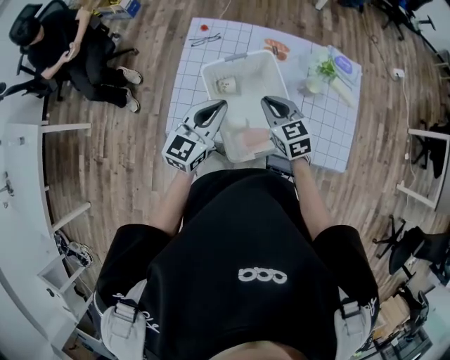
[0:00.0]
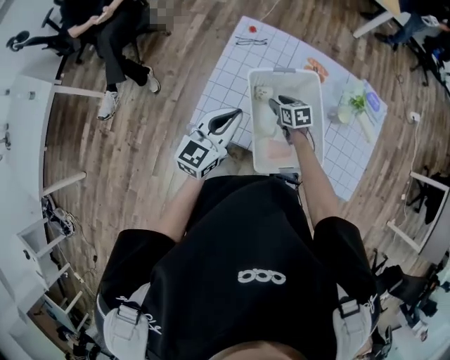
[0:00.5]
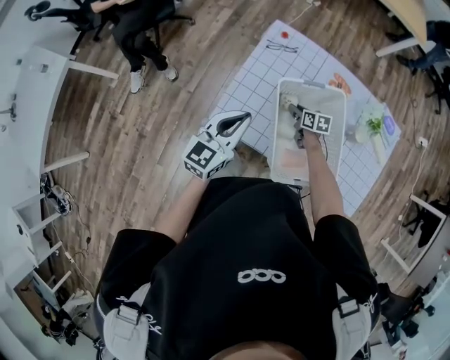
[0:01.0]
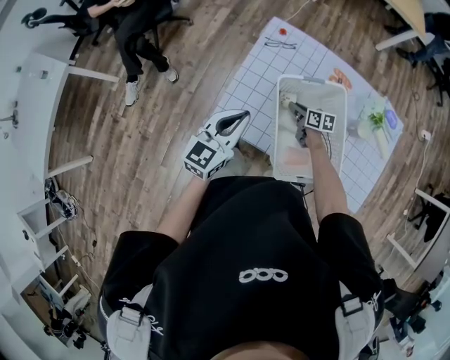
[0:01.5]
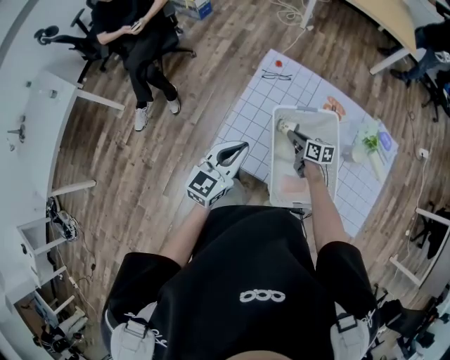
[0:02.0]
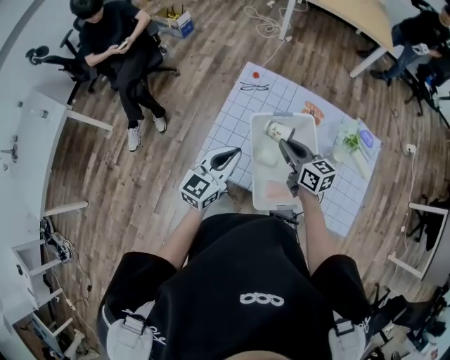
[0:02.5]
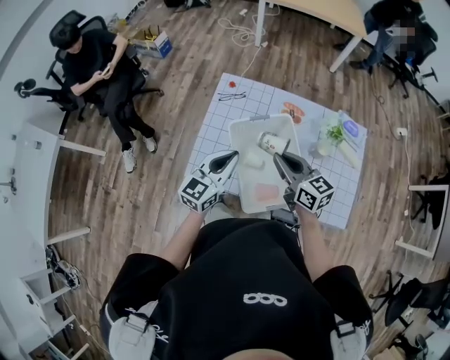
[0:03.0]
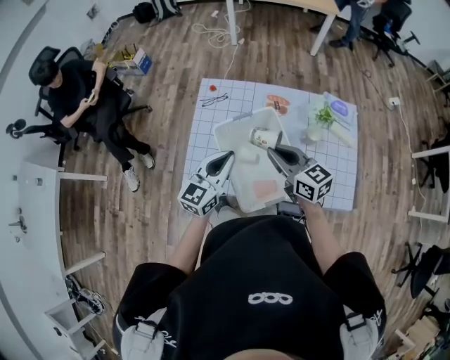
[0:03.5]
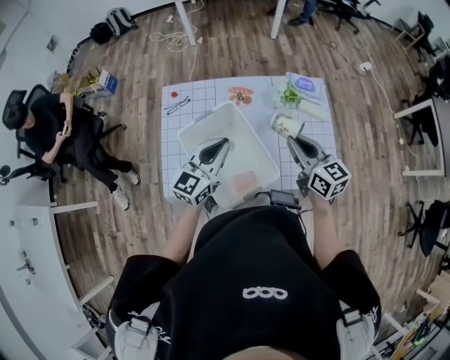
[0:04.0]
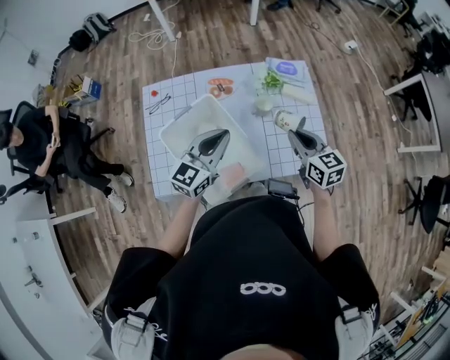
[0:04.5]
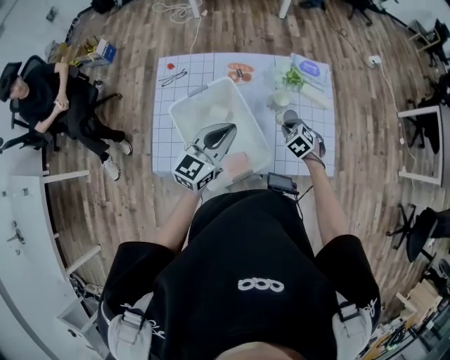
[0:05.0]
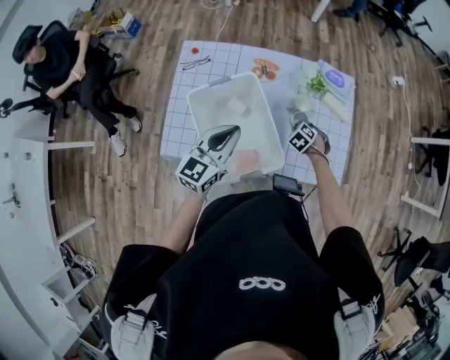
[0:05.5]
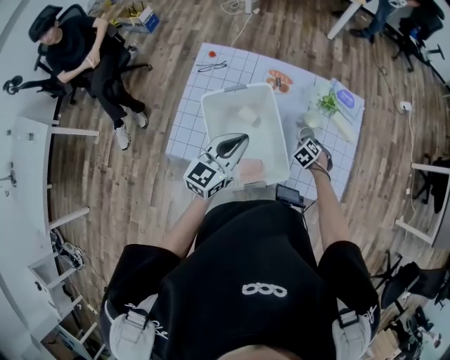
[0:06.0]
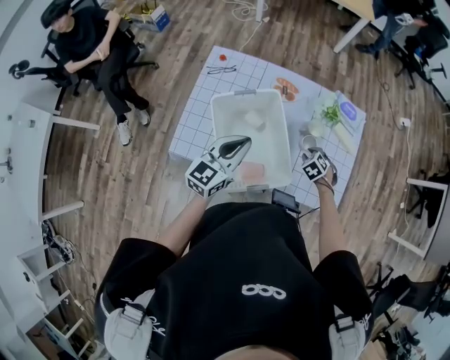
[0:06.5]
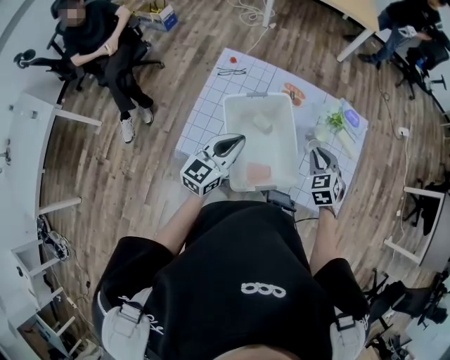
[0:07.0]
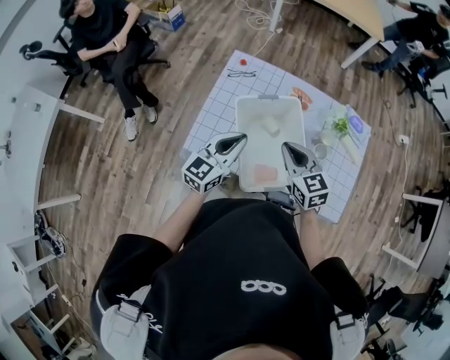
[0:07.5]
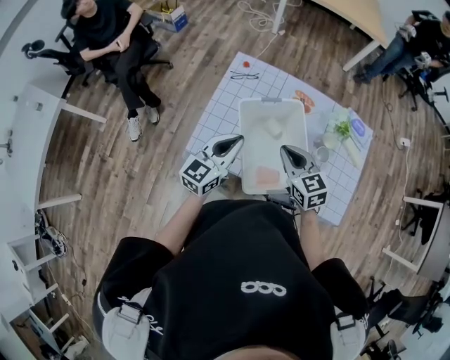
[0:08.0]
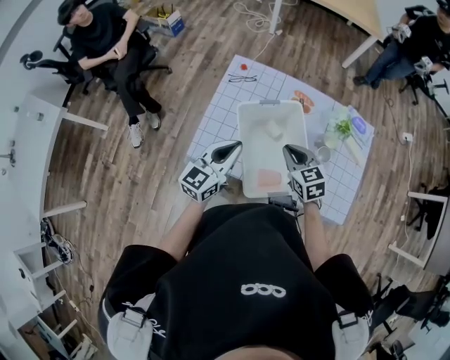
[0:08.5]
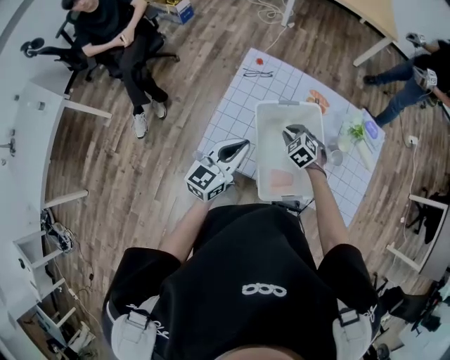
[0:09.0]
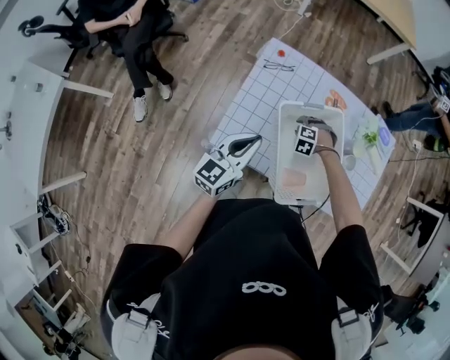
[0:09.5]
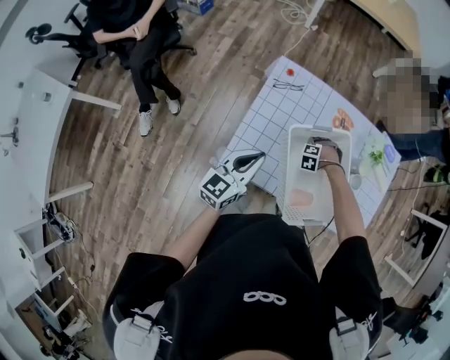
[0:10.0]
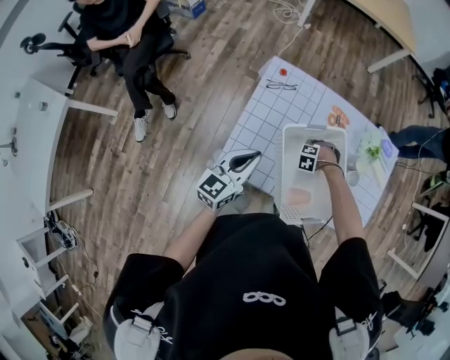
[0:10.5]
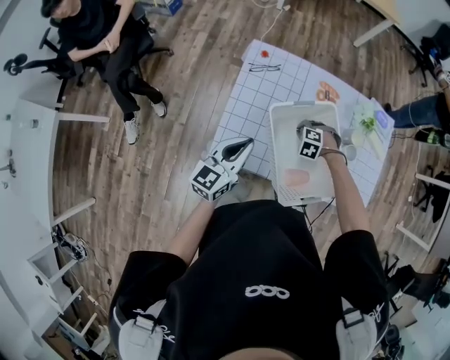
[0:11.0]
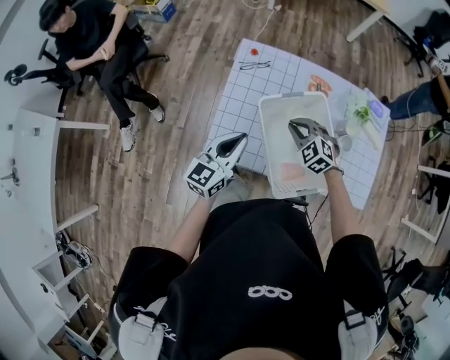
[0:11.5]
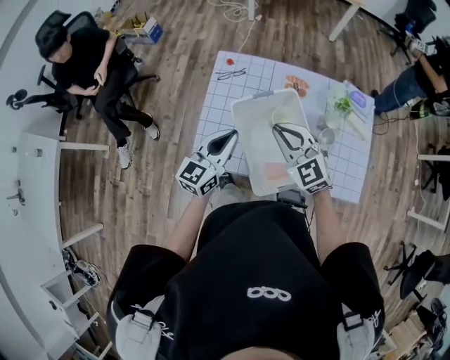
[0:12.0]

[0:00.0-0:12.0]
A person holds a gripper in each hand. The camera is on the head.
0:00.0 to 0:02.0: The right gripper moves downward, forward and to the left, approximately 20 cm, swivels approximately 40 degrees, and opens, then closes again. The left gripper is displaced to the left by some 15 cm.
0:02.0 to 0:04.0: The left gripper shifts by some 25 cm, and changes its angle by roughly 30 degrees, while the right gripper moves about 40 cm, and turns by approximately 40 degrees.
0:04.0 to 0:06.0: The left gripper moves approximately 5 cm. Meanwhile the right gripper goes roughly 35 cm downward, and tilts its fingers about 60 degrees downward.
0:06.0 to 0:08.0: The left gripper shifts by about 15 cm. The right gripper is displaced upward by about 30 cm, and angles its fingers upward, by approximately 50 degrees.
0:08.0 to 0:10.0: The right gripper heads downward, covering approximately 30 cm, tilts its fingers about 50 degrees downward, and opens its fingers. Meanwhile the left gripper shifts by approximately 10 cm.
0:10.0 to 0:12.0: The left gripper ends up approximately 10 cm from where it was; the right gripper is displaced upward by about 35 cm, points its fingers approximately 60 degrees further upward, and closes.

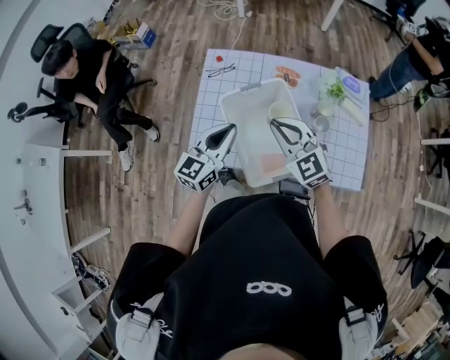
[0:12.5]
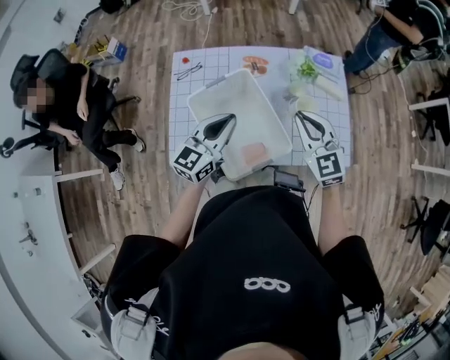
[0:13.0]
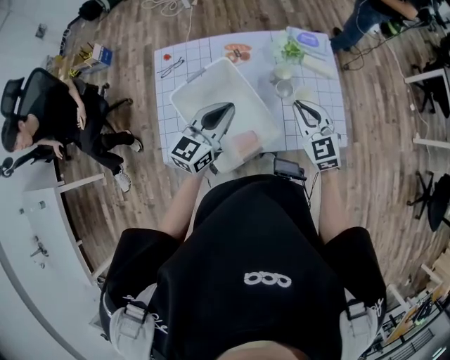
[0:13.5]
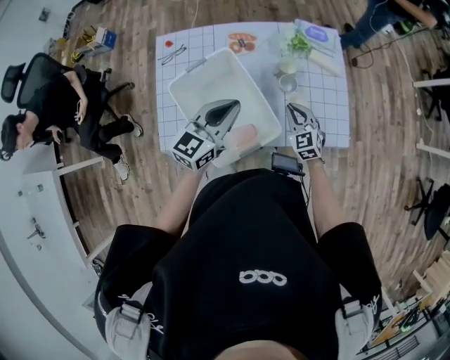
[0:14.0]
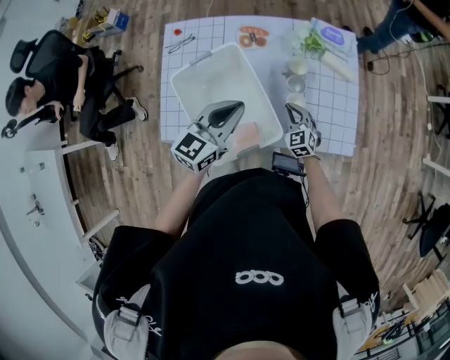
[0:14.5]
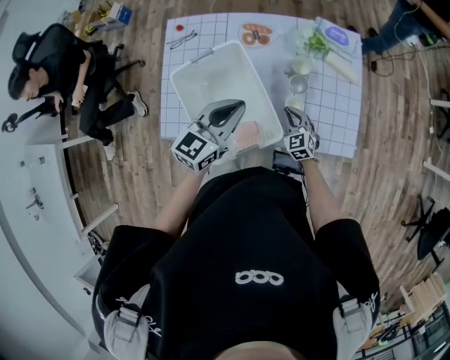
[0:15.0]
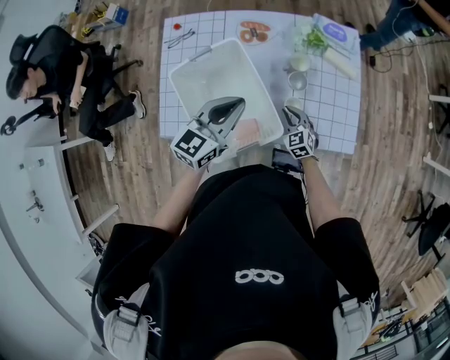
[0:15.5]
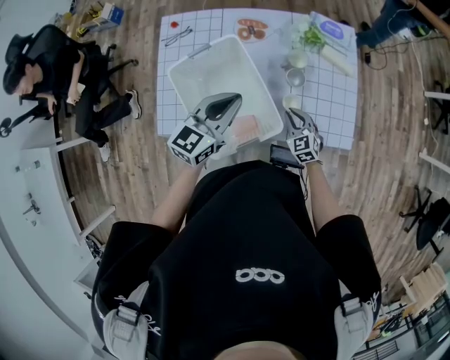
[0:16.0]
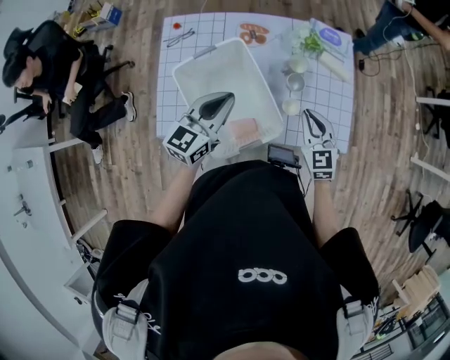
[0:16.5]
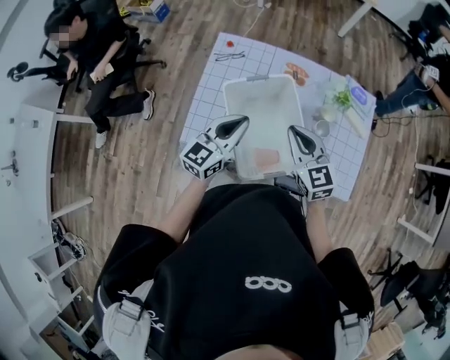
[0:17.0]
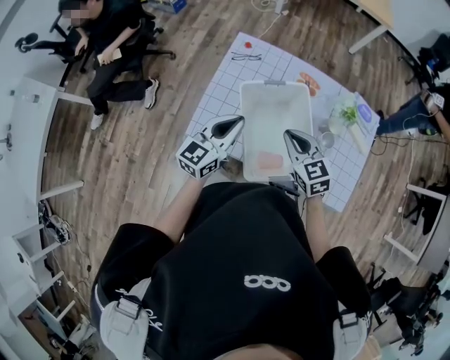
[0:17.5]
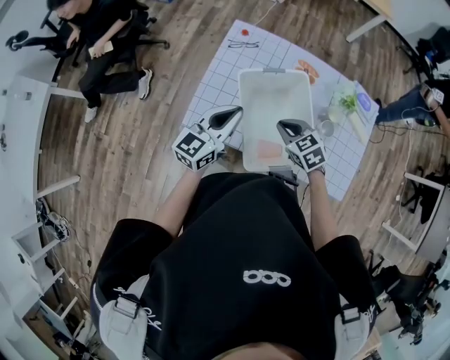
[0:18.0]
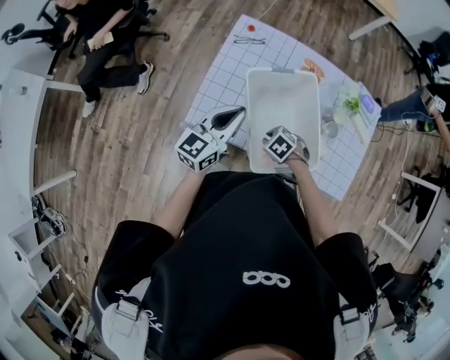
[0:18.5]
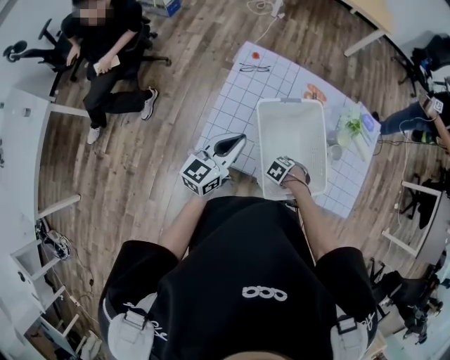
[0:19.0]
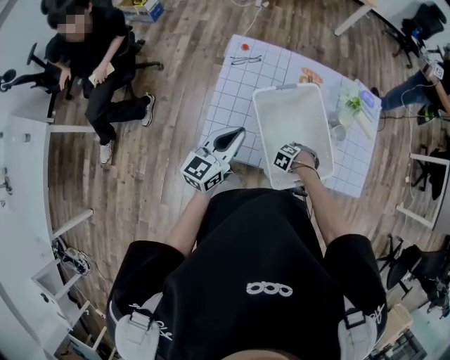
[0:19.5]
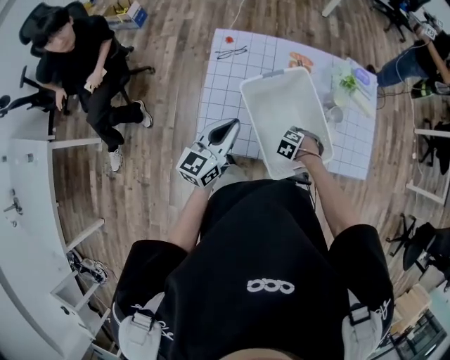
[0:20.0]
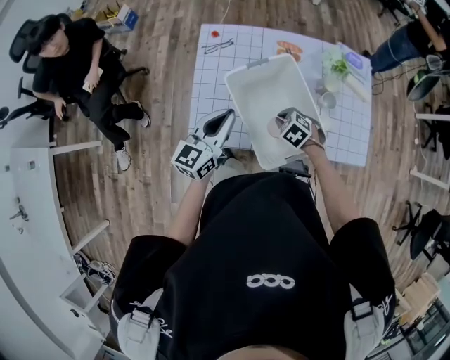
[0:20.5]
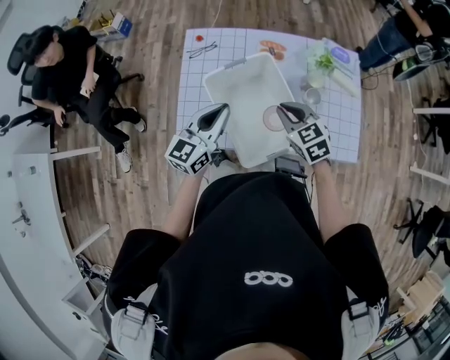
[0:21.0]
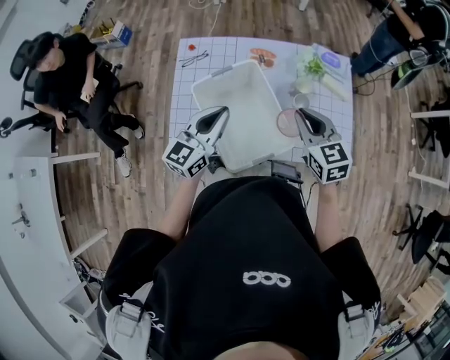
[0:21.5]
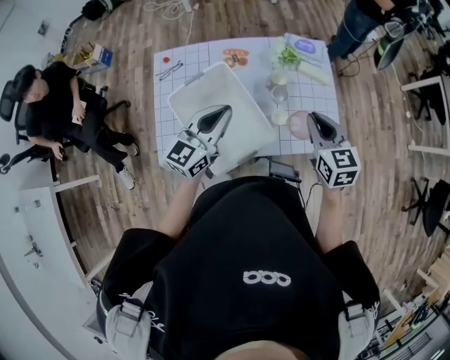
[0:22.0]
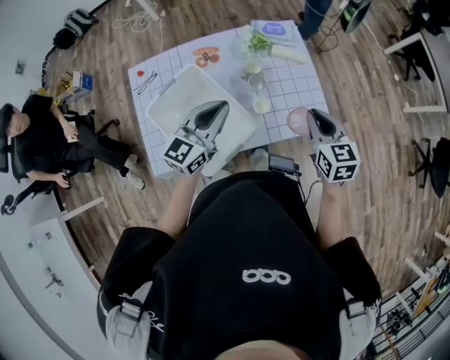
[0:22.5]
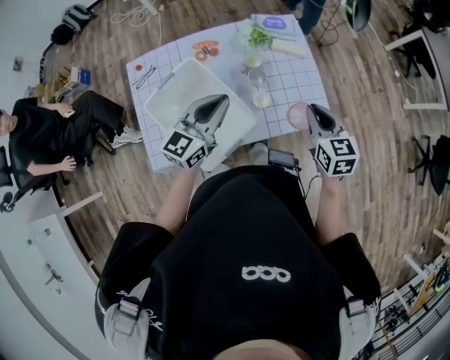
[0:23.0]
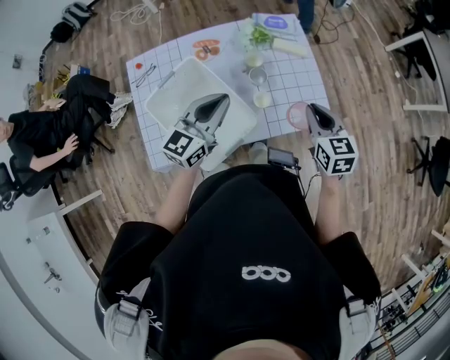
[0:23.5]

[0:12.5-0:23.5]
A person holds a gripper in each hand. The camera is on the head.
0:12.5 to 0:14.5: The right gripper goes approximately 35 cm downward and to the right, and rotates roughly 30 degrees, while the left gripper moves to the right, about 15 cm.
0:14.5 to 0:16.0: The grippers move only a little.
0:16.0 to 0:18.0: The left gripper changes place by roughly 20 cm, and turns by roughly 20 degrees, while the right gripper shifts by some 25 cm, and changes its angle by some 30 degrees.
0:18.0 to 0:20.0: The left gripper ends up approximately 5 cm from where it was; the right gripper travels downward by about 20 cm, tips its fingers downward by approximately 40 degrees, and opens, then closes once more.
0:20.0 to 0:21.5: The right gripper is displaced upward by about 30 cm, and tips its fingers upward by some 60 degrees. The left gripper moves about 15 cm.
0:21.5 to 0:23.5: Both grippers move to the right, approximately 15 cm. The left gripper rotates approximately 20 degrees; the right gripper changes its angle by approximately 30 degrees.

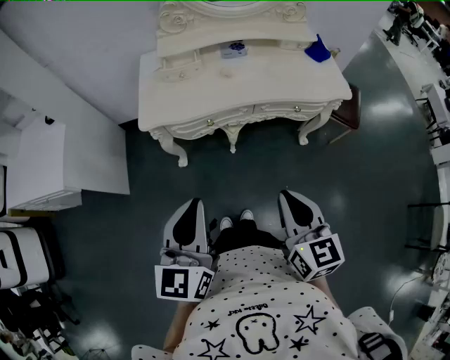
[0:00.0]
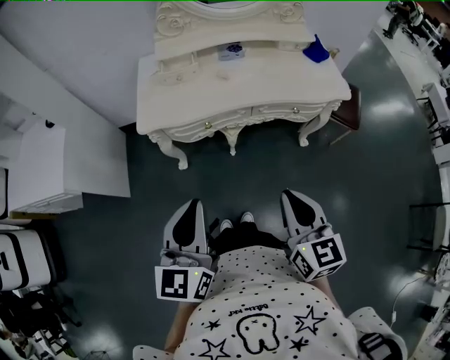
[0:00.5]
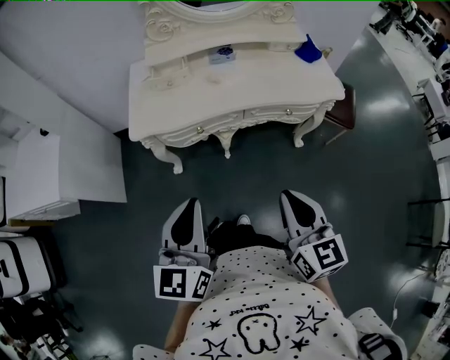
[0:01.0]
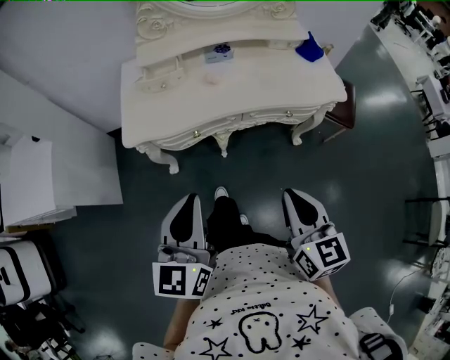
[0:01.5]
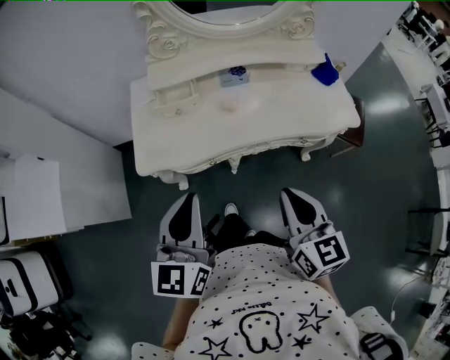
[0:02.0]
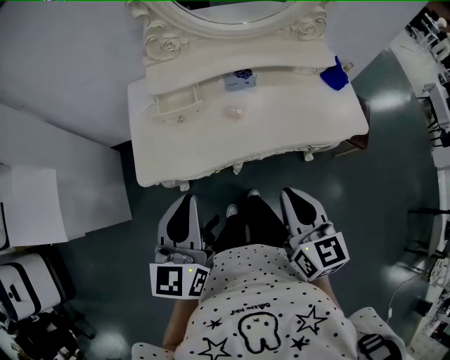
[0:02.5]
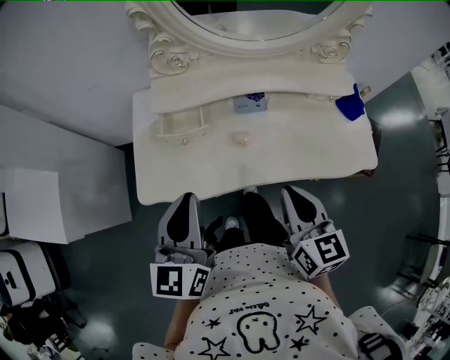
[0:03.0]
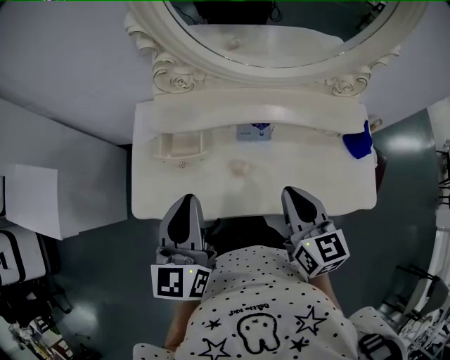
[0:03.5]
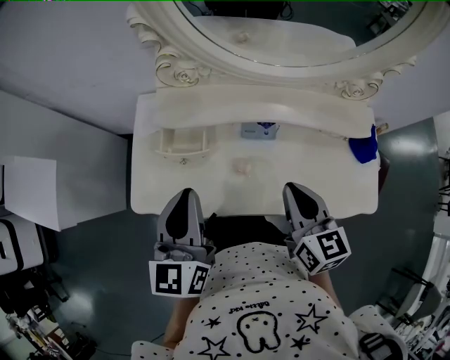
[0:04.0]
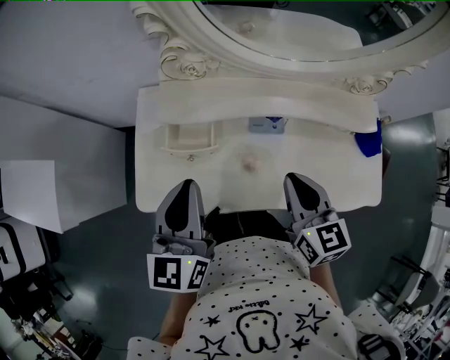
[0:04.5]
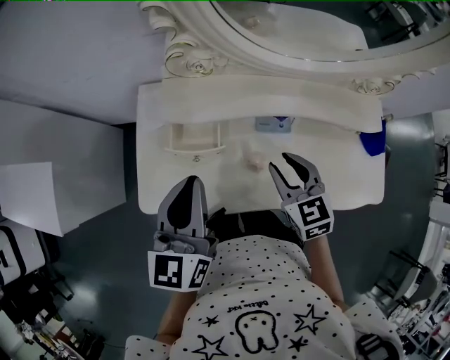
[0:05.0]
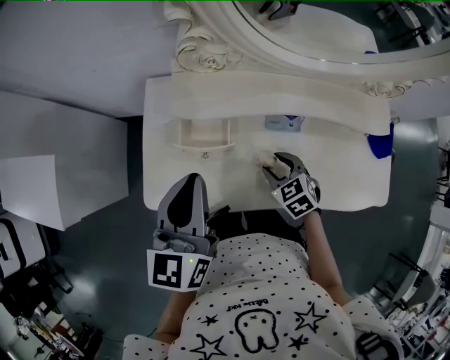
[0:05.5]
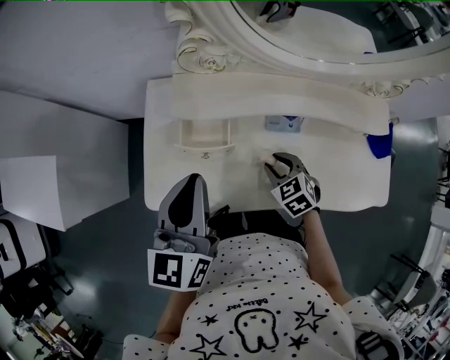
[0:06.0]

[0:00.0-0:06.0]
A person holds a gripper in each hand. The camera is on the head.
0:00.0 to 0:02.0: The two grippers go about 20 cm forward.
0:02.0 to 0:04.0: Both grippers travel together forward, about 30 cm.
0:04.0 to 0:06.0: The left gripper travels to the left and forward by roughly 10 cm. The right gripper travels downward and to the left by approximately 20 cm, points its fingers approximately 30 degrees further downward, and opens up.
